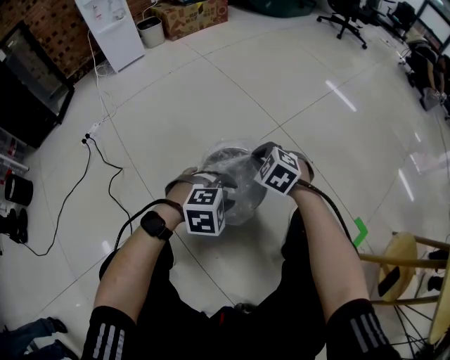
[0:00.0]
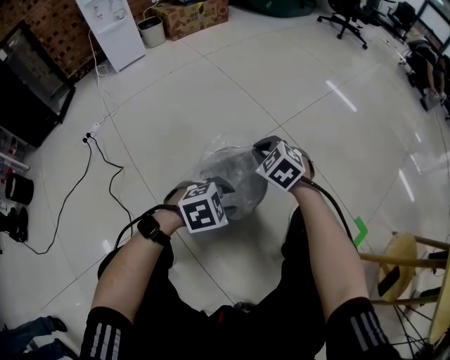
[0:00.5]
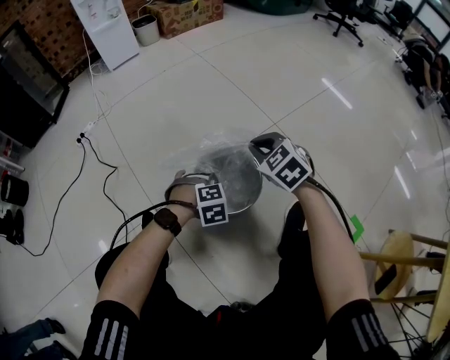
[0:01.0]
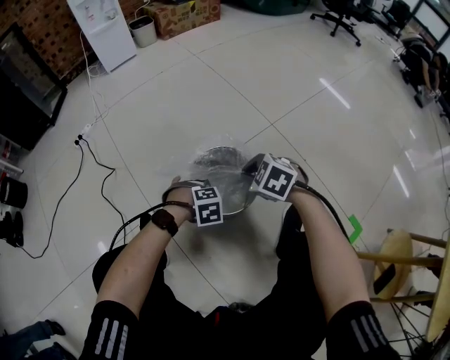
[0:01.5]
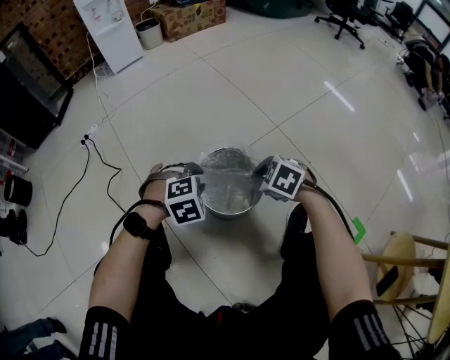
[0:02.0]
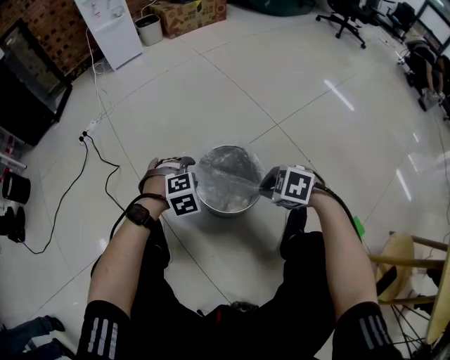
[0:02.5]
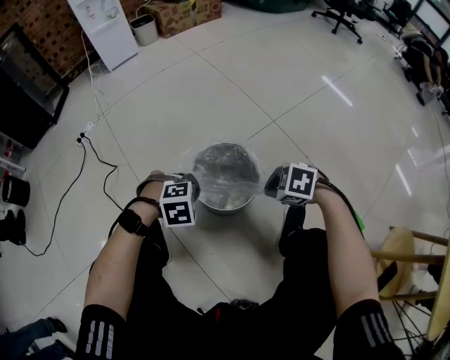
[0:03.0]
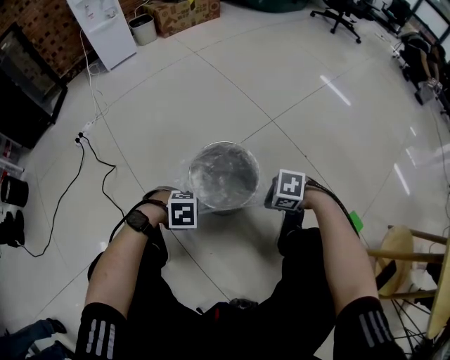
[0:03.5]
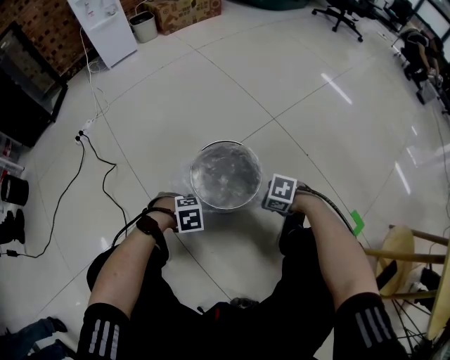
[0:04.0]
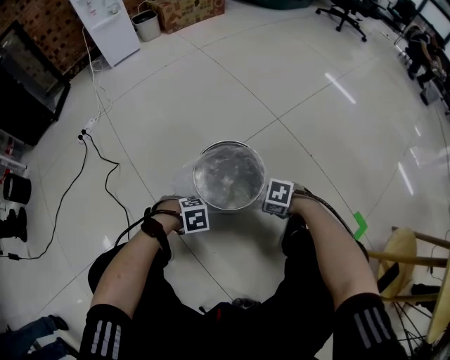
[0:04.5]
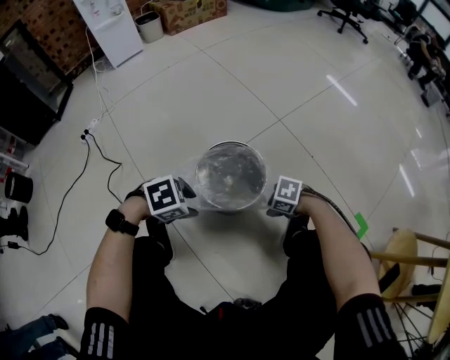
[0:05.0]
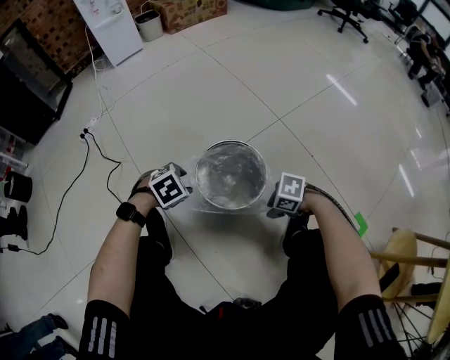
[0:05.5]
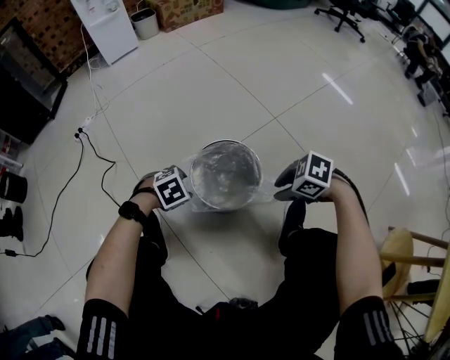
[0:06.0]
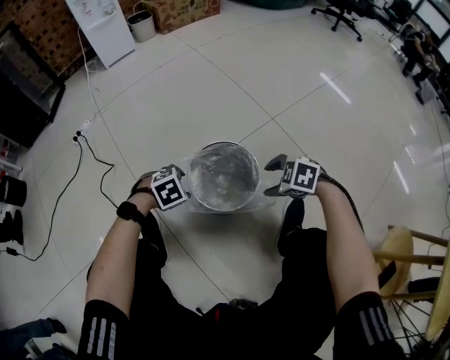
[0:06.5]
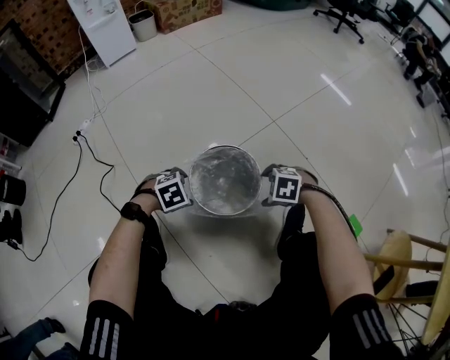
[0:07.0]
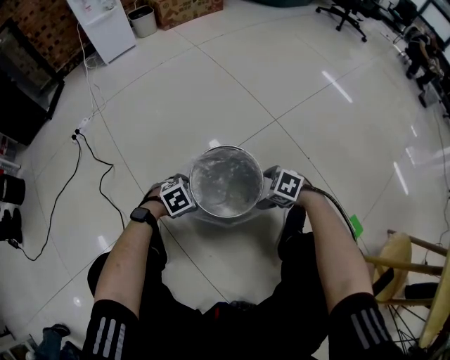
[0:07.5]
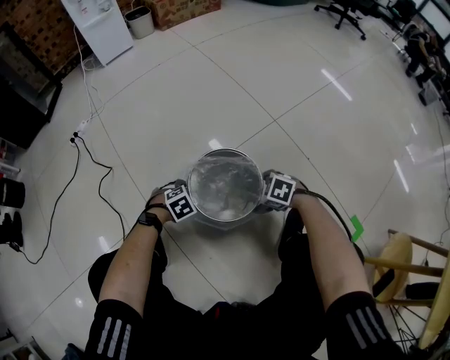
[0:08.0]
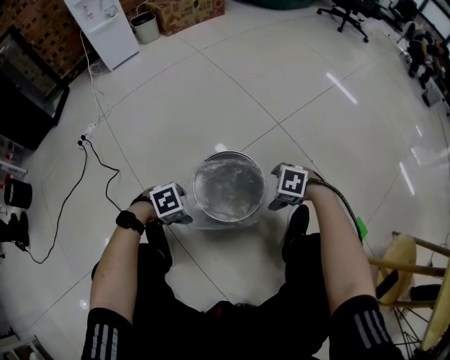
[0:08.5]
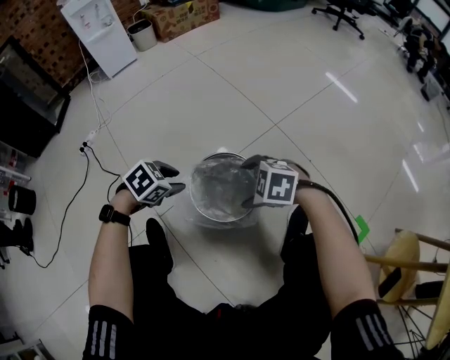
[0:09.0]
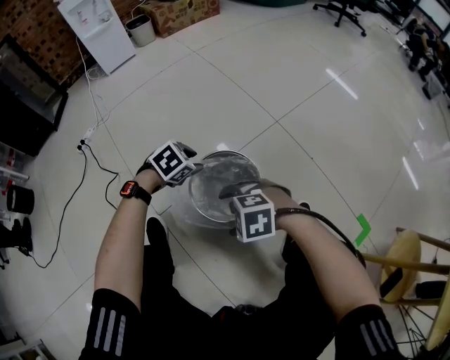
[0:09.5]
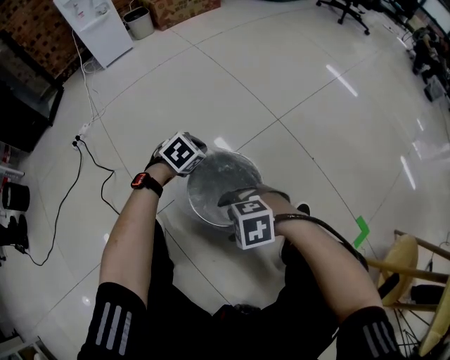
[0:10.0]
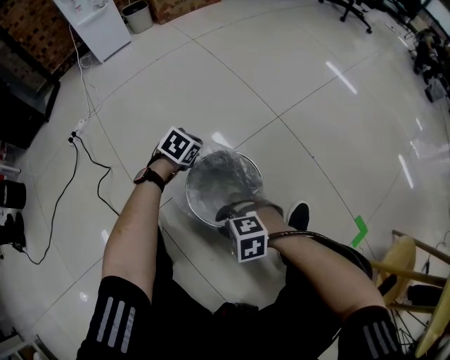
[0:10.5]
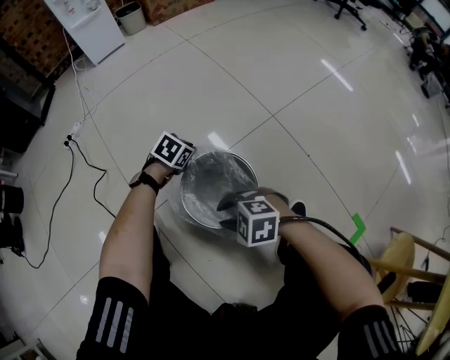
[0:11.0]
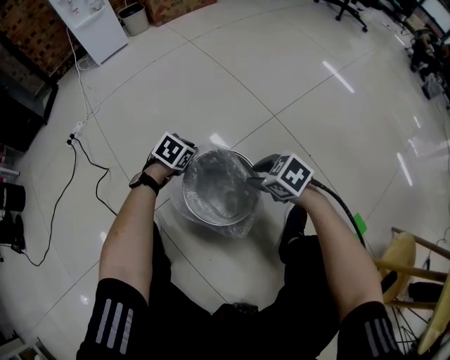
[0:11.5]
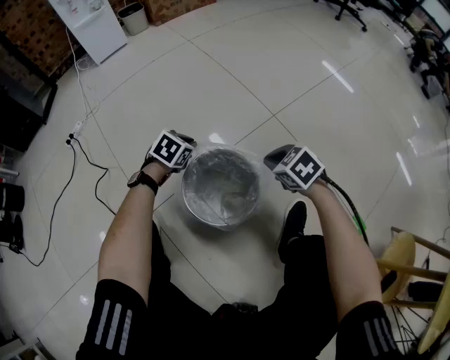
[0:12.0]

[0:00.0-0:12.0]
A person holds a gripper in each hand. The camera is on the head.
0:00.0 to 0:02.0: The right gripper ends up about 5 cm from where it was. Meanwhile the left gripper goes downward and returns, about 10 cm each way, and swivels some 20 degrees.
0:02.0 to 0:04.0: The two grippers go about 15 cm downward. The left gripper rotates about 30 degrees. Meanwhile the right gripper rotates roughly 30 degrees.
0:04.0 to 0:06.0: The right gripper goes roughly 10 cm upward, while the left gripper reaches some 10 cm upward, then returns, and opens up.
0:06.0 to 0:08.0: The grippers both shift downward by about 10 cm. The left gripper opens its fingers; the right gripper opens its fingers.
0:08.0 to 0:10.0: The left gripper moves about 20 cm, and closes up. The right gripper changes place by some 20 cm, and swivels roughly 30 degrees.
0:10.0 to 0:12.0: The right gripper changes place by approximately 25 cm, rotates around the line of its fingers by about 40 degrees, clockwise from behind, and closes.

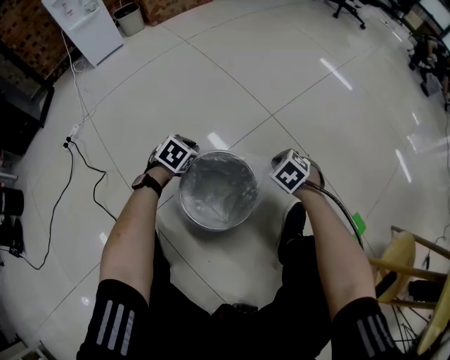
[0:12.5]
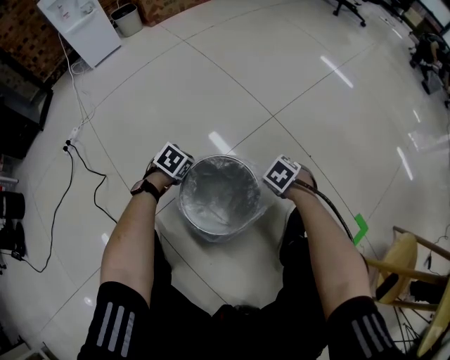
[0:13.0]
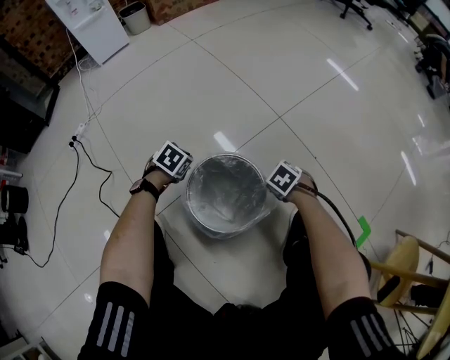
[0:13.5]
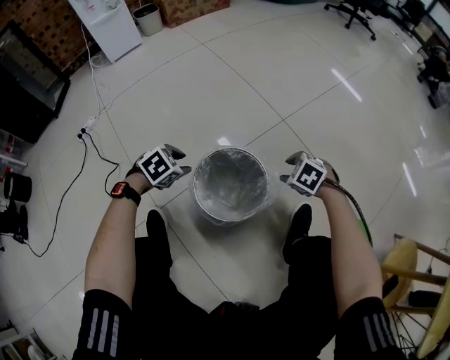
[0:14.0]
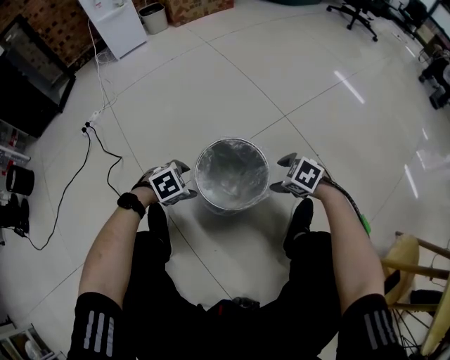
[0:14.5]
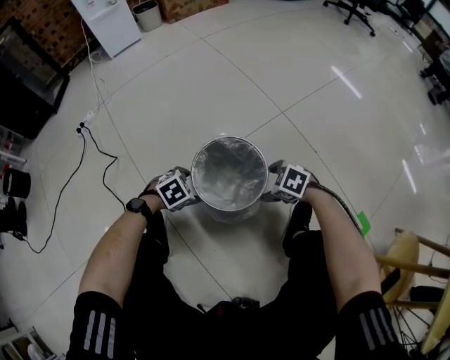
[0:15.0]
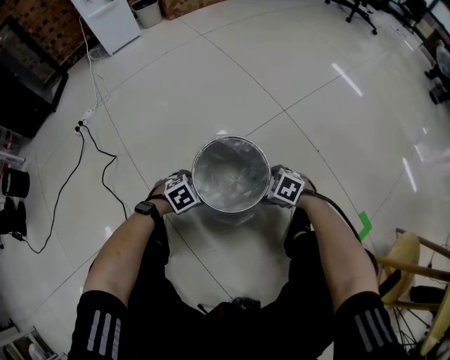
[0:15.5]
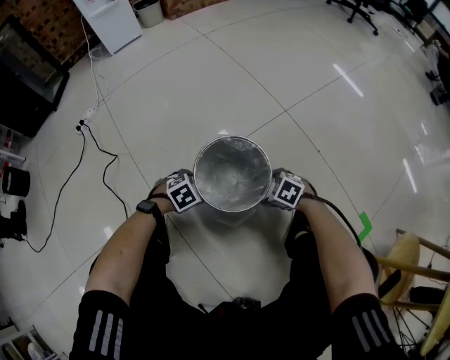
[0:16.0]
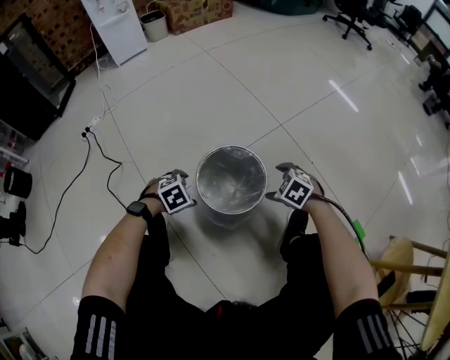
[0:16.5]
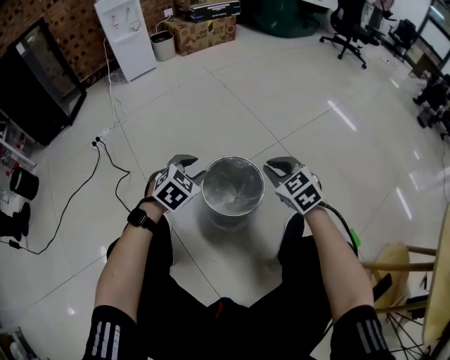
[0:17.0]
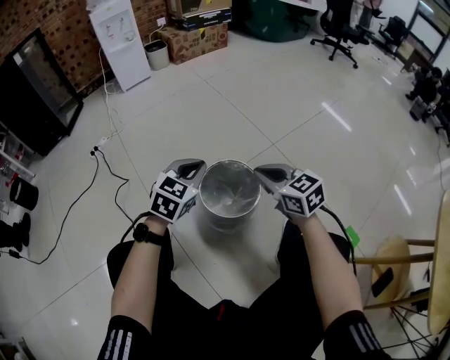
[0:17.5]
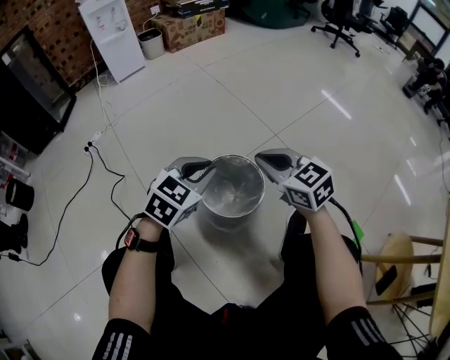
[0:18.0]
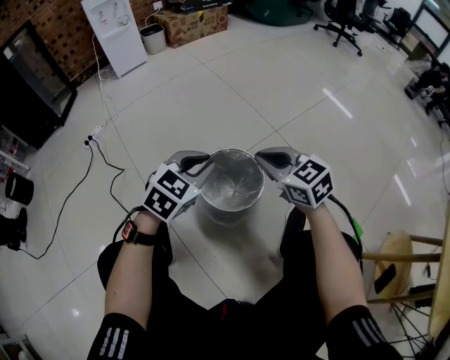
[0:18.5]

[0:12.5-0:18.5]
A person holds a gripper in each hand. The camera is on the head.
0:12.5 to 0:14.5: The right gripper goes downward and returns, some 5 cm each way, swivels roughly 20 degrees, and opens its fingers. The left gripper reaches approximately 5 cm upward, then returns, rotates about 20 degrees, and opens.
0:14.5 to 0:16.5: The left gripper moves roughly 10 cm downward and comes back. Meanwhile the right gripper reaches about 10 cm downward, then returns.
0:16.5 to 0:18.5: The two grippers go approximately 25 cm upward. The right gripper tilts its fingers approximately 40 degrees upward, and closes. Meanwhile the left gripper angles its fingers upward, by about 40 degrees, and closes up.

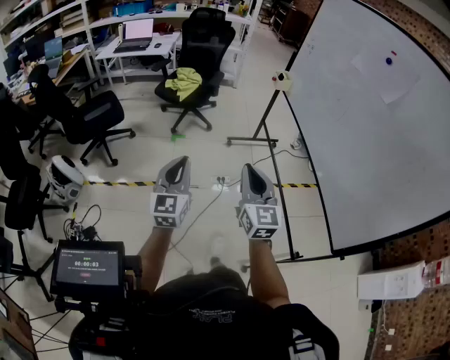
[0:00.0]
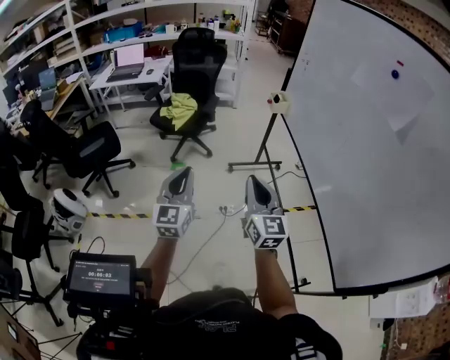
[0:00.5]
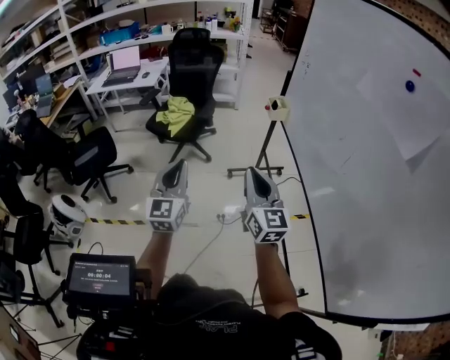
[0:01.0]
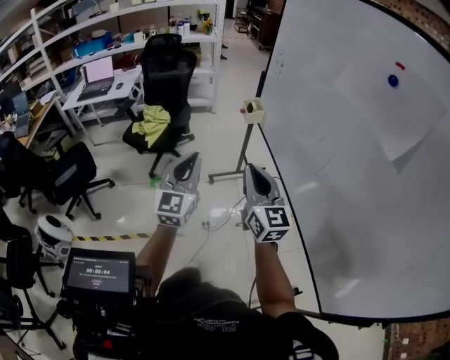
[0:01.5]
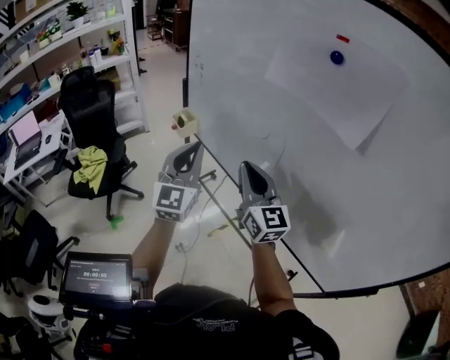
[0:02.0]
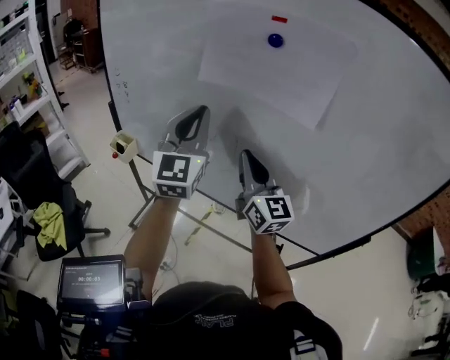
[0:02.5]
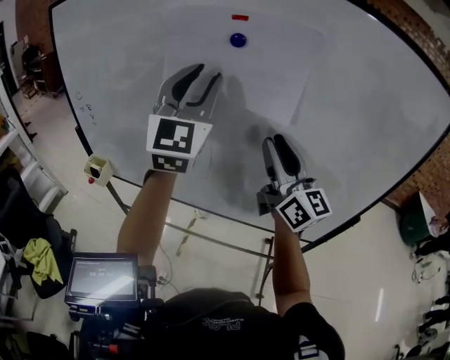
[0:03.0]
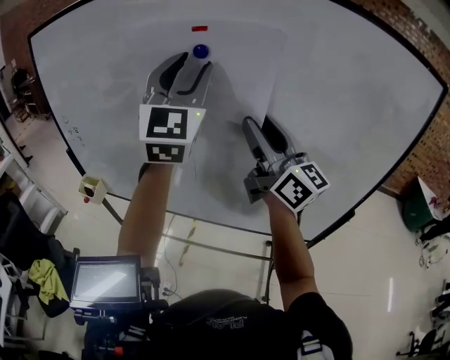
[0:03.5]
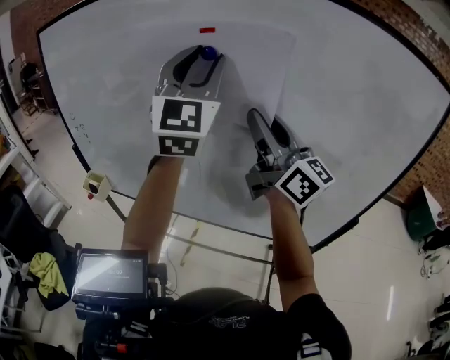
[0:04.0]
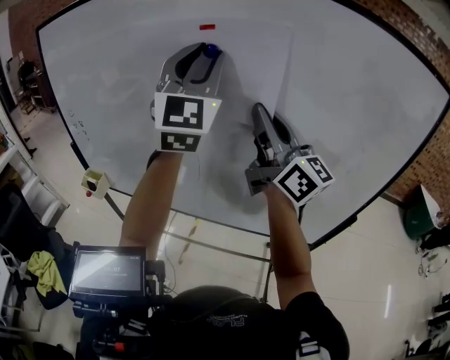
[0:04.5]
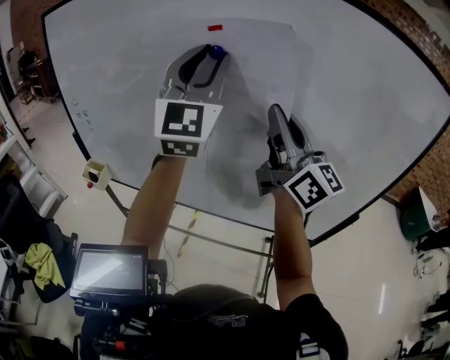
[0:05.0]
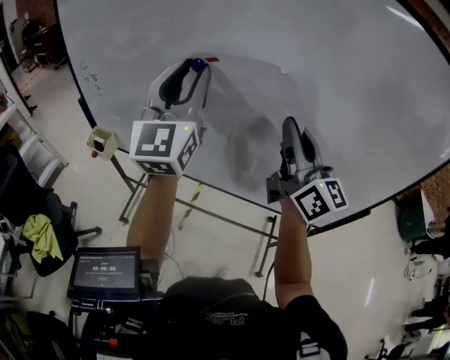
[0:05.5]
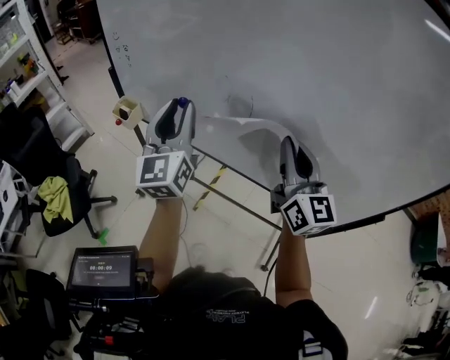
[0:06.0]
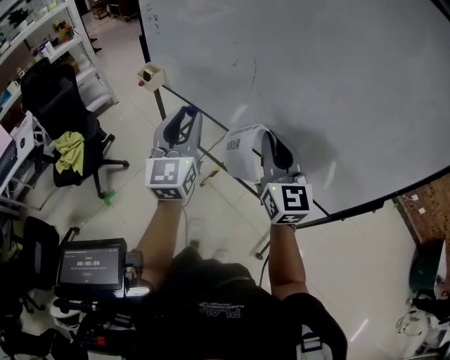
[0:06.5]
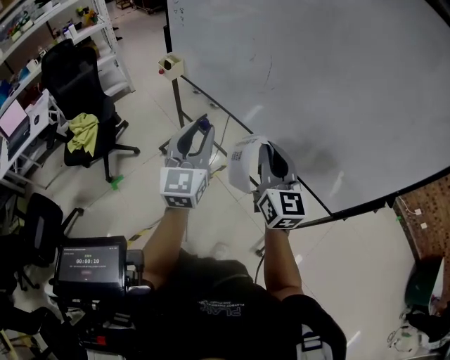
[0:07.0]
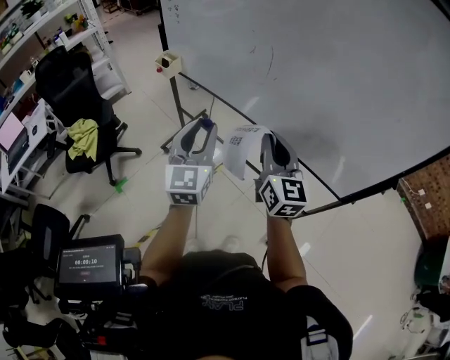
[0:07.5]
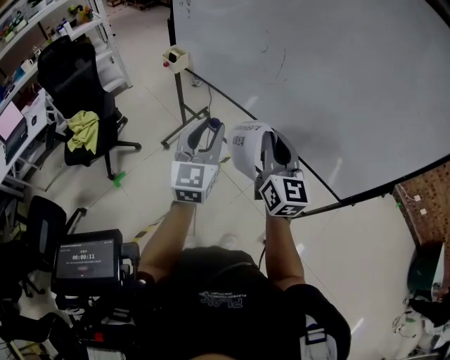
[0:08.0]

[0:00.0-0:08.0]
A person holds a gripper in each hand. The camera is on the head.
0:00.0 to 0:02.0: The pair of grippers is taken roughly 50 cm. The left gripper swivels approximately 40 degrees, while the right gripper turns by roughly 20 degrees.
0:02.0 to 0:04.0: The grippers both shift upward by about 25 cm. The right gripper swivels approximately 20 degrees, and opens up; the left gripper turns by approximately 40 degrees, and opens up.
0:04.0 to 0:06.0: The left gripper travels downward and to the left by some 30 cm, and turns by about 30 degrees, while the right gripper goes about 15 cm downward, rotates some 20 degrees, and closes up.
0:06.0 to 0:08.0: The left gripper shifts roughly 25 cm backward and downward; the right gripper travels backward, to the left and downward by approximately 20 cm.
